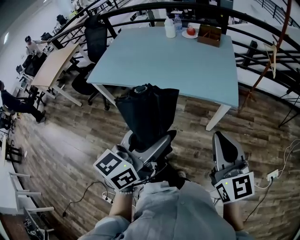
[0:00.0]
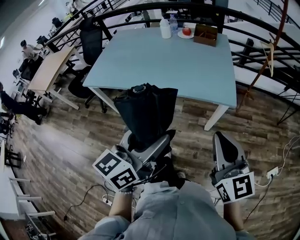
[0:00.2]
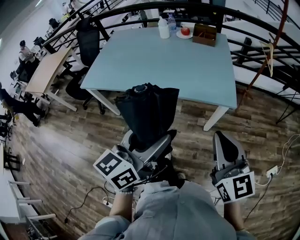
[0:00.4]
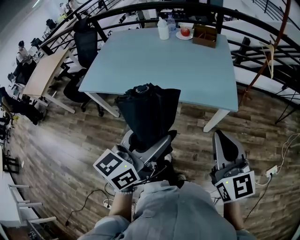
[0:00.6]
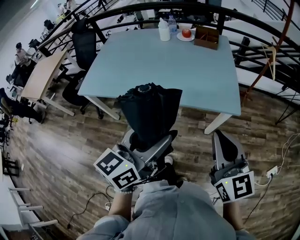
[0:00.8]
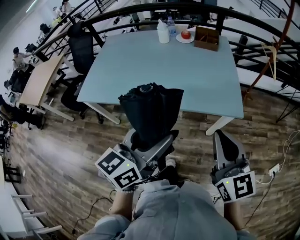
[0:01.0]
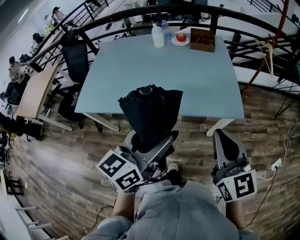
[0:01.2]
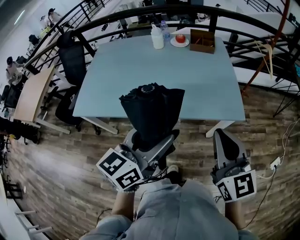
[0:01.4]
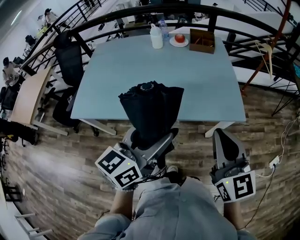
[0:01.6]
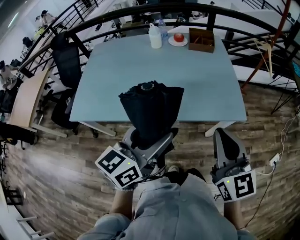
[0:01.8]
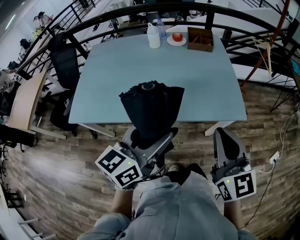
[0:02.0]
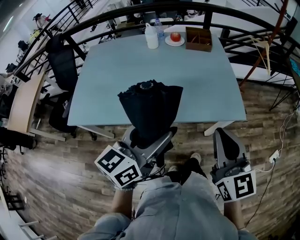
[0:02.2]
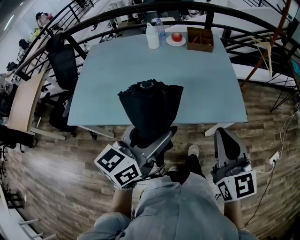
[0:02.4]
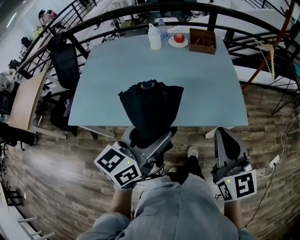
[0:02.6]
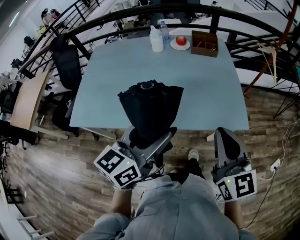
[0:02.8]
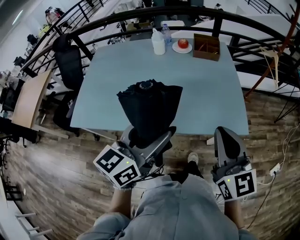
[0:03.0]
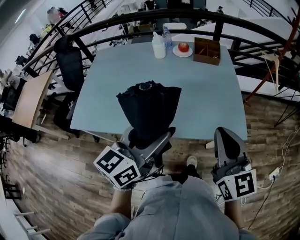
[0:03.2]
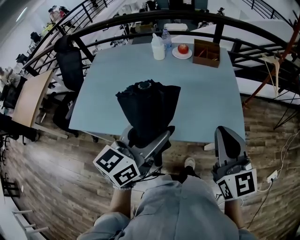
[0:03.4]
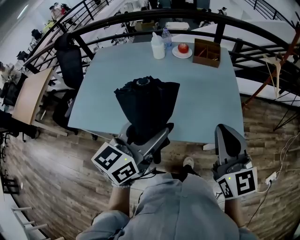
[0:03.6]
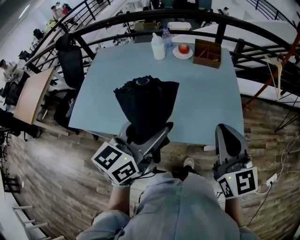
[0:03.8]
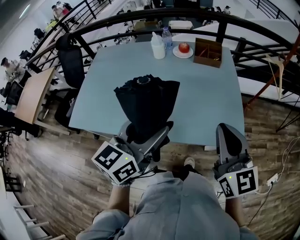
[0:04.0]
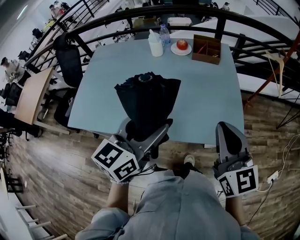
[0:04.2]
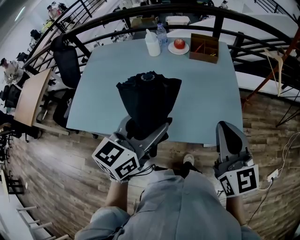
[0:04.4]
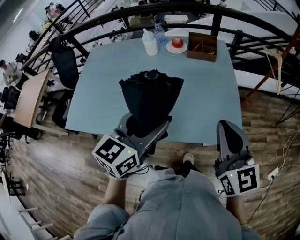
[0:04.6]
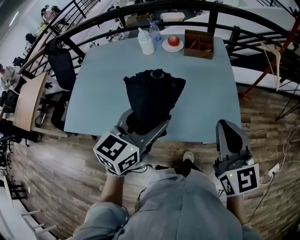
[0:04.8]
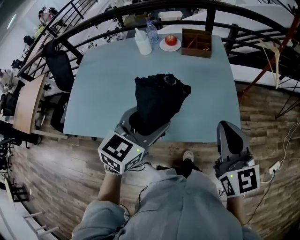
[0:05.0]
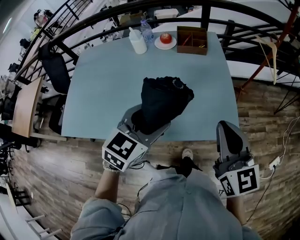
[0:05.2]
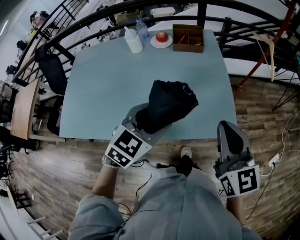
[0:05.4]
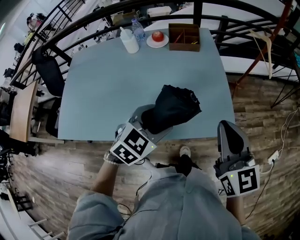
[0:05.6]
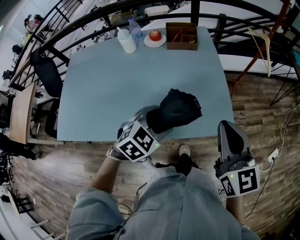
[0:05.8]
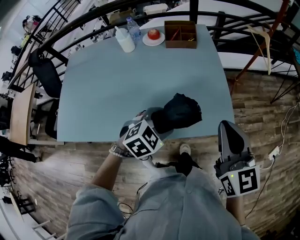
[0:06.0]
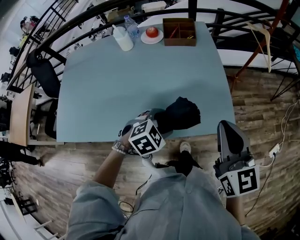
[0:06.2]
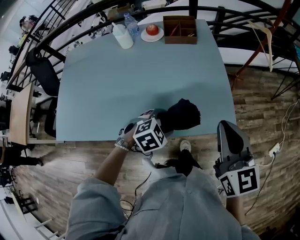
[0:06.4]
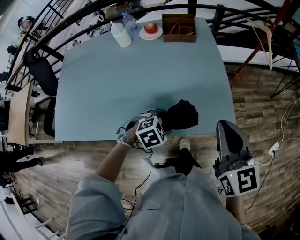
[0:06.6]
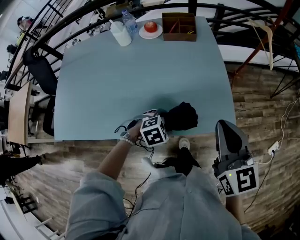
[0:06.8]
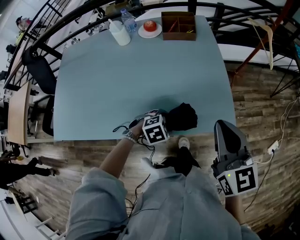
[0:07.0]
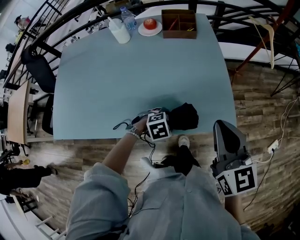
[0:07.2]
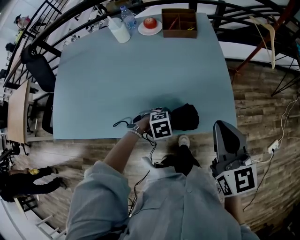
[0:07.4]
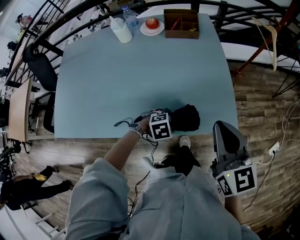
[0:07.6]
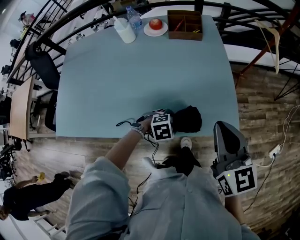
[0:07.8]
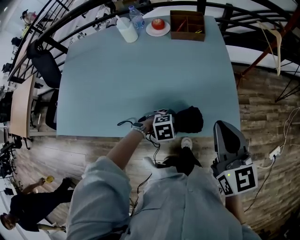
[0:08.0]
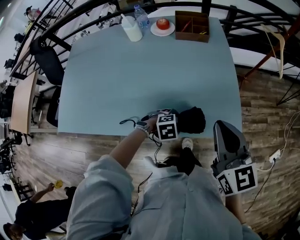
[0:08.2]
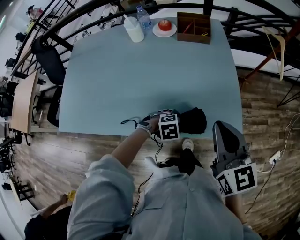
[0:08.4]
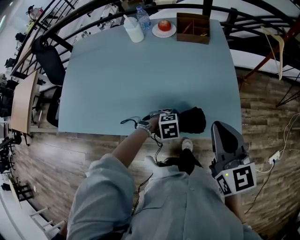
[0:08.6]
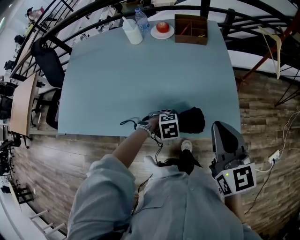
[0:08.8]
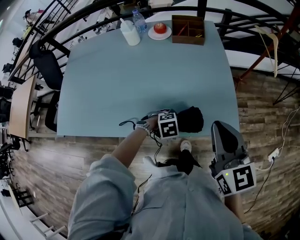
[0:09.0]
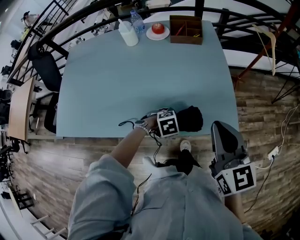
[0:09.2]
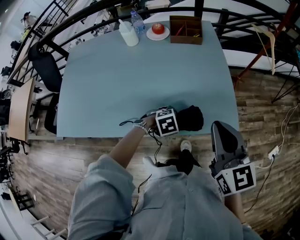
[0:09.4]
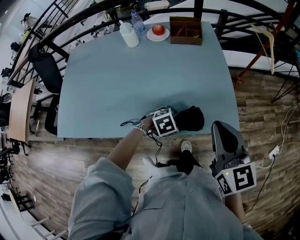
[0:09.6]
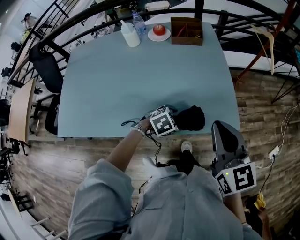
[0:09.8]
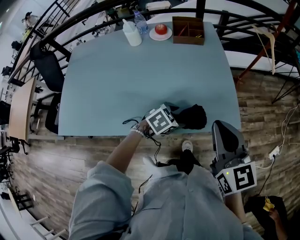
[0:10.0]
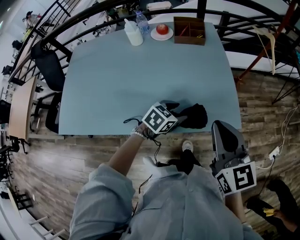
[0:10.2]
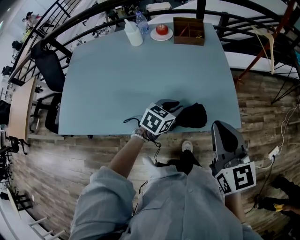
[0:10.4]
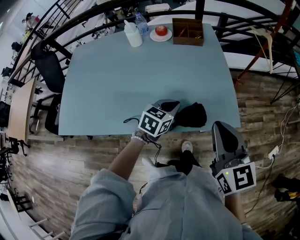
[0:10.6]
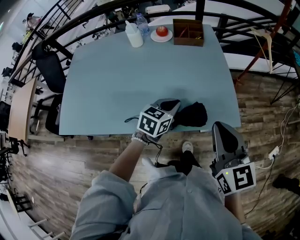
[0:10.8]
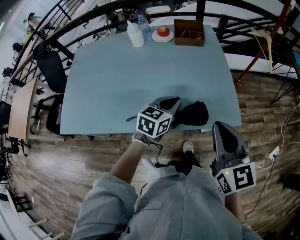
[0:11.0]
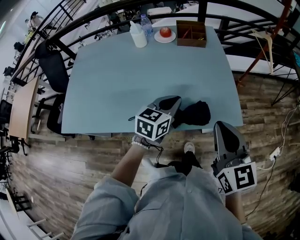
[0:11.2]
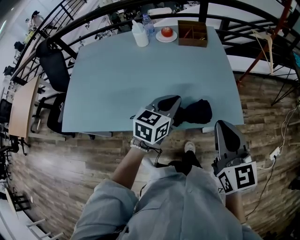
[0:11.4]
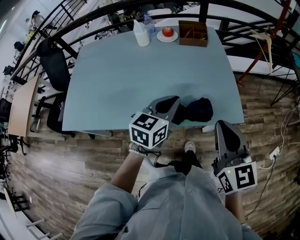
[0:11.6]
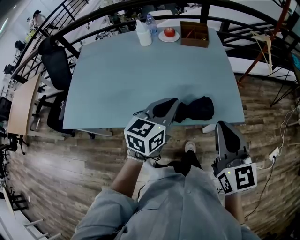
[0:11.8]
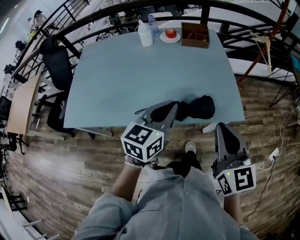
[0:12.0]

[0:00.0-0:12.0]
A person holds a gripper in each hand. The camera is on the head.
0:00.0 to 0:01.6: Both grippers move forward and to the left, approximately 20 cm.
0:01.6 to 0:03.0: Both grippers move forward, some 10 cm.
0:03.0 to 0:04.4: The right gripper moves forward and to the right, about 10 cm; the left gripper is displaced forward by about 10 cm.
0:04.4 to 0:06.0: The right gripper is displaced to the right by about 5 cm. Meanwhile the left gripper shifts some 20 cm downward and to the right, and tilts its fingers approximately 40 degrees downward.
0:06.0 to 0:07.6: The left gripper is displaced downward by approximately 15 cm, and rotates some 30 degrees.
0:07.6 to 0:09.0: There are only small adjustments of the grippers.
0:09.0 to 0:10.4: The left gripper heads upward and forward, covering approximately 15 cm, angles its fingers upward, by some 30 degrees, and closes.
0:10.4 to 0:12.0: The left gripper shifts approximately 20 cm upward and backward, and swivels roughly 30 degrees. The right gripper travels backward by approximately 10 cm.

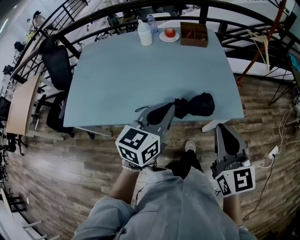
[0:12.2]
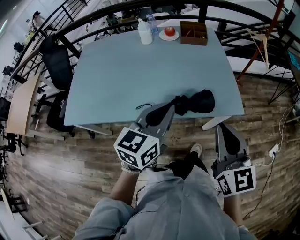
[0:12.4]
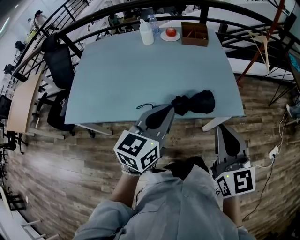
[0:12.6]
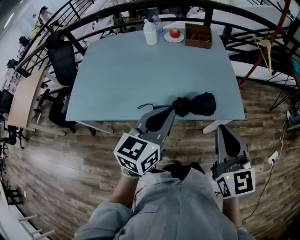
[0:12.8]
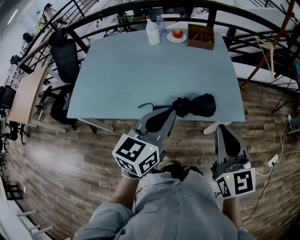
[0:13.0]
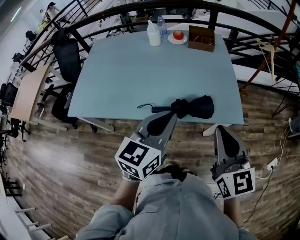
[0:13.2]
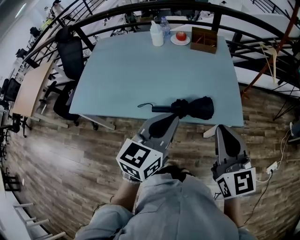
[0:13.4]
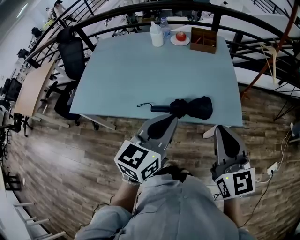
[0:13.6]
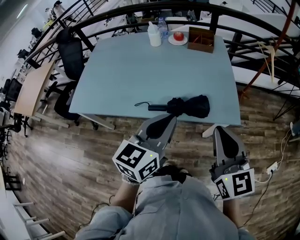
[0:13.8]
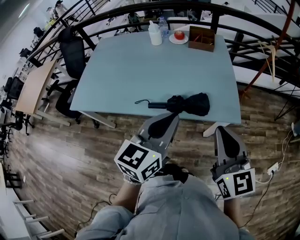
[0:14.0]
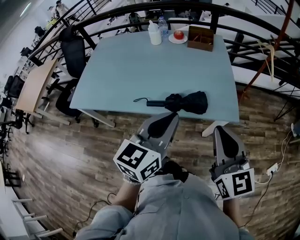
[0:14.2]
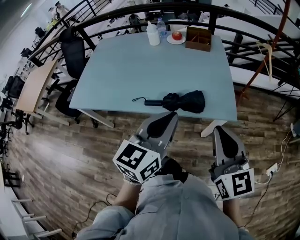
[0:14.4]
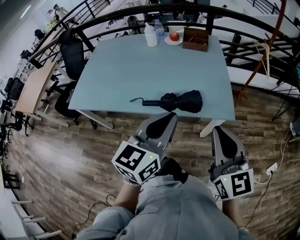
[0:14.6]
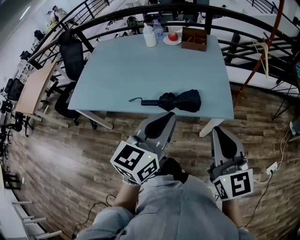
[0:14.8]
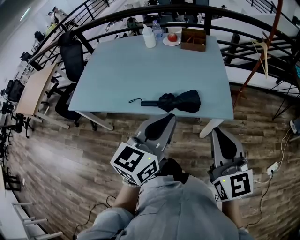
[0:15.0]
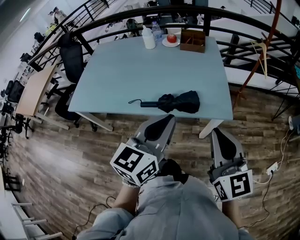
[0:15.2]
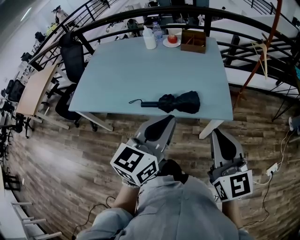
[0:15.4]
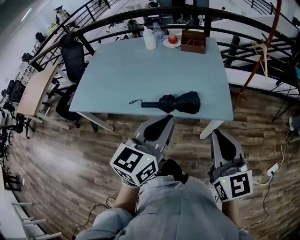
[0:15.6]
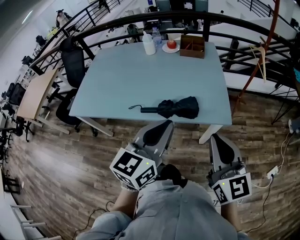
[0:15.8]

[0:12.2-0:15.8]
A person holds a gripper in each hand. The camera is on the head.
0:12.2 to 0:14.0: The right gripper shifts about 5 cm to the right; the left gripper shifts approximately 10 cm backward and to the right.
0:14.0 to 0:15.8: The left gripper ends up roughly 5 cm from where it was. Meanwhile the right gripper ends up about 5 cm from where it was.

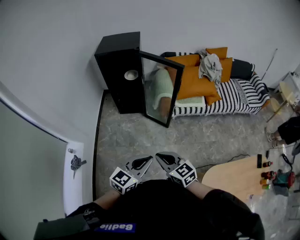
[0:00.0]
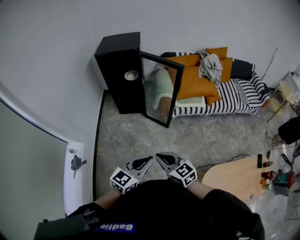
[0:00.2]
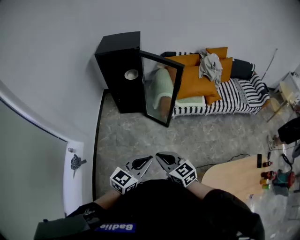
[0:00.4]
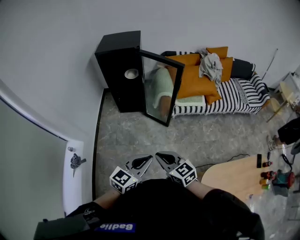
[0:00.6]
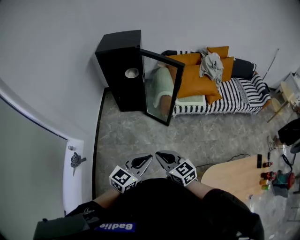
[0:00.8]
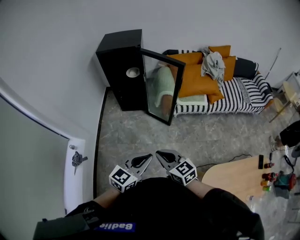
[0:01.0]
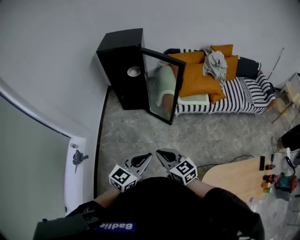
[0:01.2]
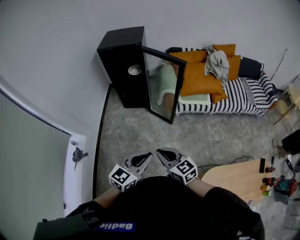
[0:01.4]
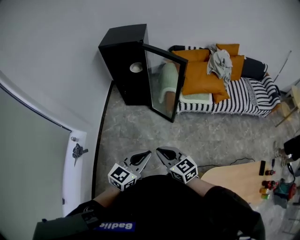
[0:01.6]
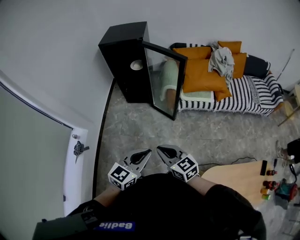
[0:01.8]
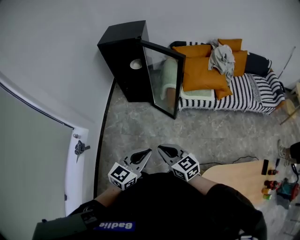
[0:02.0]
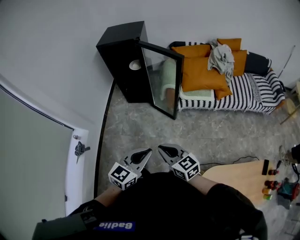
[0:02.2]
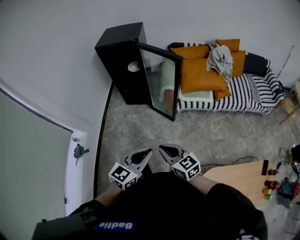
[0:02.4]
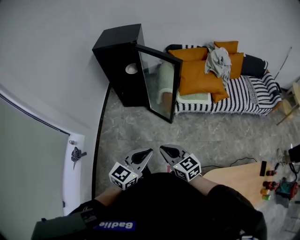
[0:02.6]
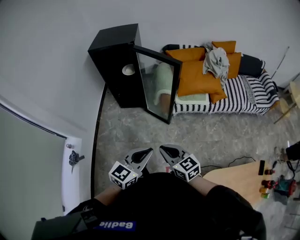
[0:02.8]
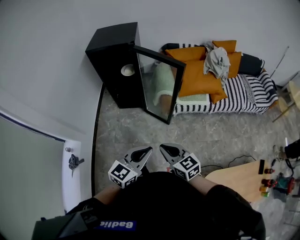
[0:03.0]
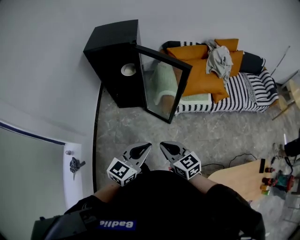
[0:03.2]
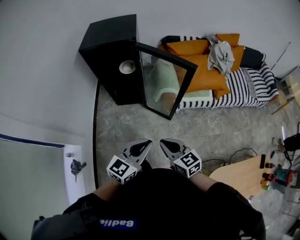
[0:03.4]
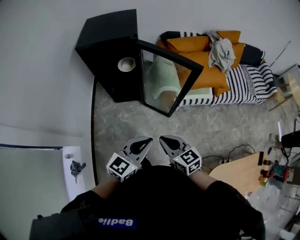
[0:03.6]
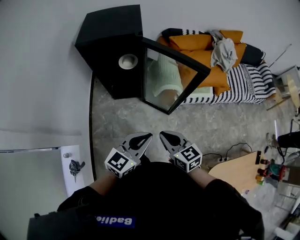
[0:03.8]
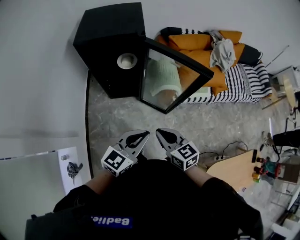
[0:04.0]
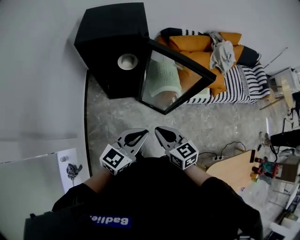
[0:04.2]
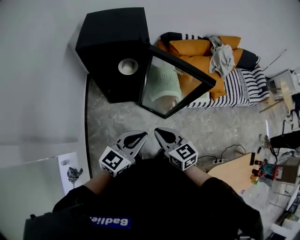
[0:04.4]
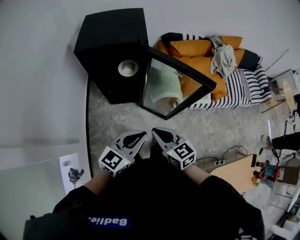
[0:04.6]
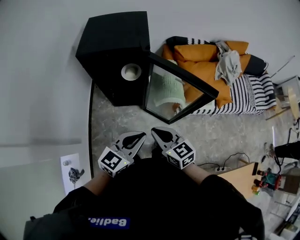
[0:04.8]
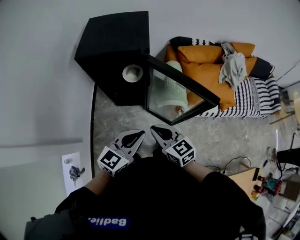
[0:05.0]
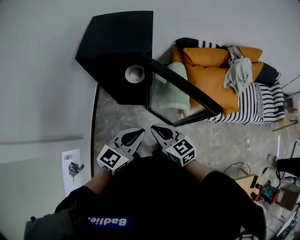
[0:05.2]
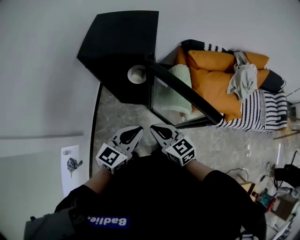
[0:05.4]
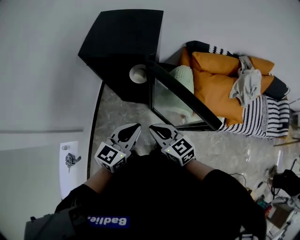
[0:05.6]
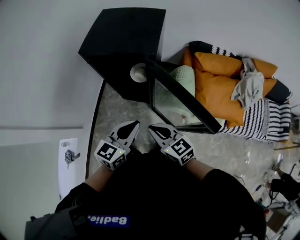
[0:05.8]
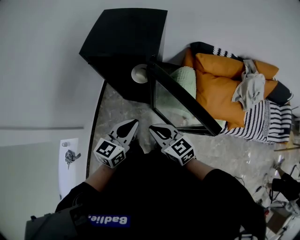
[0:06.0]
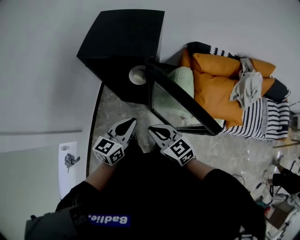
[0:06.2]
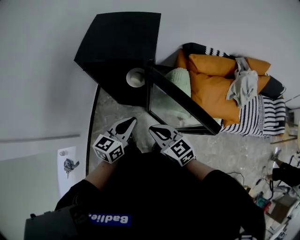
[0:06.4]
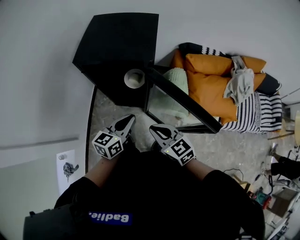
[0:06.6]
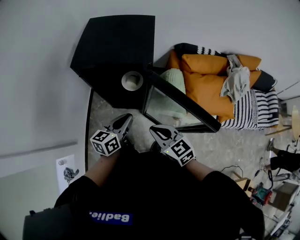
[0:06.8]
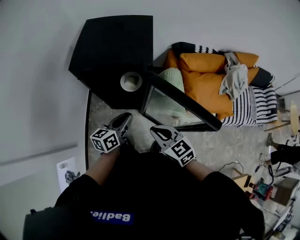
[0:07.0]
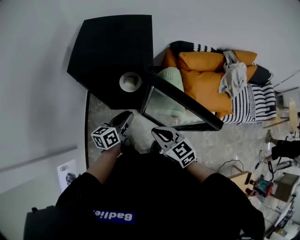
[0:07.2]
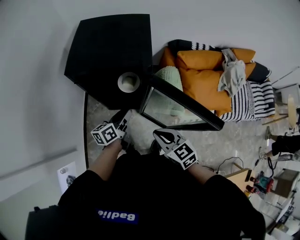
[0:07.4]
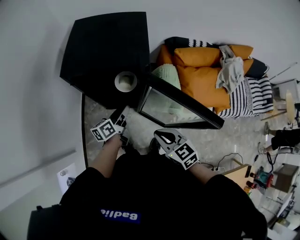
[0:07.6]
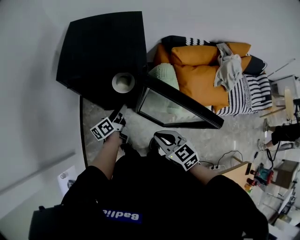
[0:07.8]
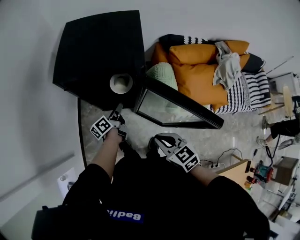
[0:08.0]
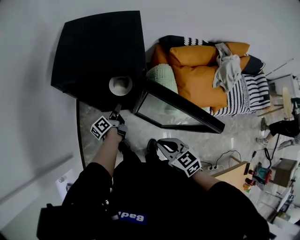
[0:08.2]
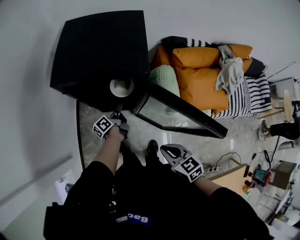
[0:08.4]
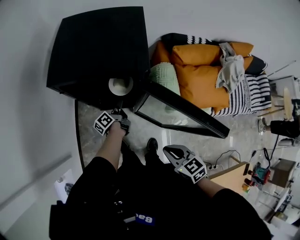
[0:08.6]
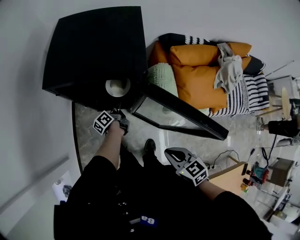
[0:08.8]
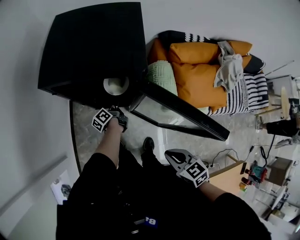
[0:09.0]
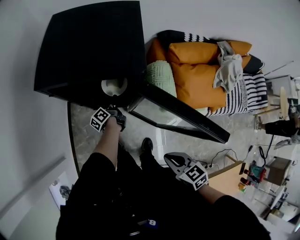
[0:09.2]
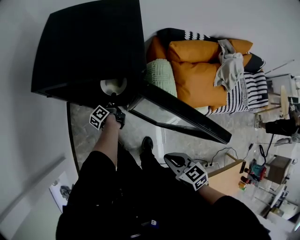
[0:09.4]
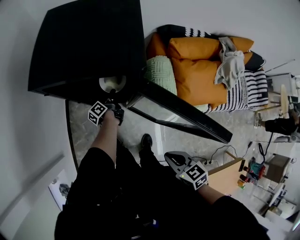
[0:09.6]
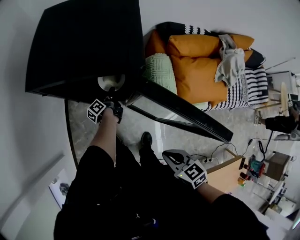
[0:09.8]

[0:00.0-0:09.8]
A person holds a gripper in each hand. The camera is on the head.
0:00.0 to 0:01.4: There are only small adjustments of the grippers.
0:01.4 to 0:02.8: The left gripper is displaced forward by approximately 5 cm. The right gripper heads forward and to the right, covering about 10 cm.
0:02.8 to 0:04.2: Both grippers travel together forward and to the left, about 30 cm.
0:04.2 to 0:05.6: The two grippers go approximately 15 cm forward. The left gripper swivels approximately 20 degrees, while the right gripper turns by some 20 degrees.
0:05.6 to 0:07.0: The left gripper moves forward and downward, approximately 15 cm, and turns by roughly 30 degrees.
0:07.0 to 0:08.4: The right gripper goes approximately 5 cm downward, while the left gripper heads downward and forward, covering approximately 20 cm, rotates around the line of its fingers by some 40 degrees, counterclockwise from behind, and opens.
0:08.4 to 0:09.8: The left gripper moves downward and forward, about 15 cm.
